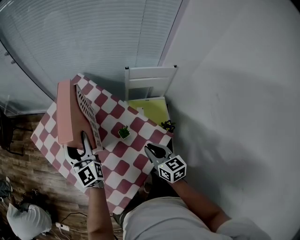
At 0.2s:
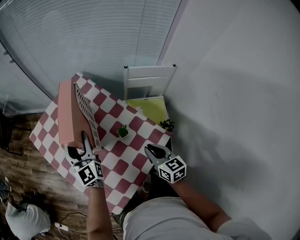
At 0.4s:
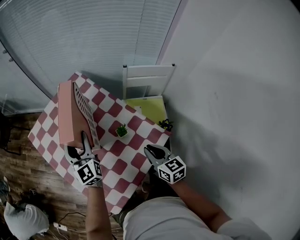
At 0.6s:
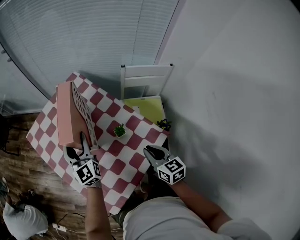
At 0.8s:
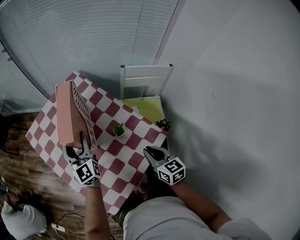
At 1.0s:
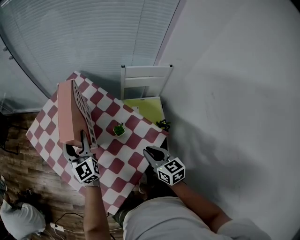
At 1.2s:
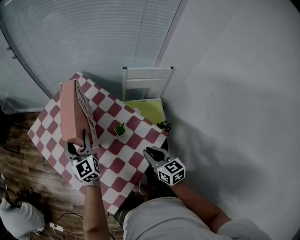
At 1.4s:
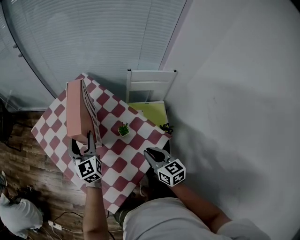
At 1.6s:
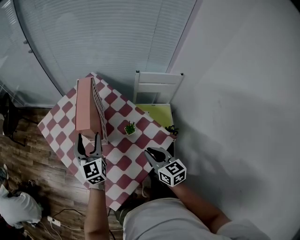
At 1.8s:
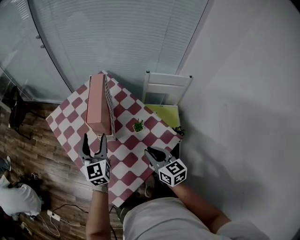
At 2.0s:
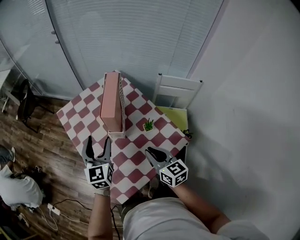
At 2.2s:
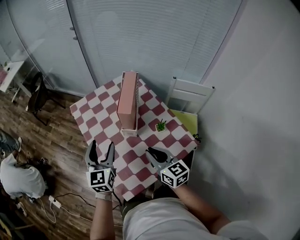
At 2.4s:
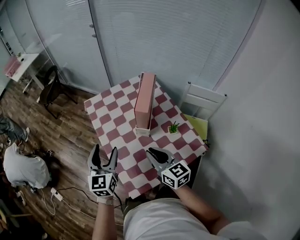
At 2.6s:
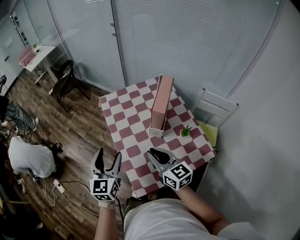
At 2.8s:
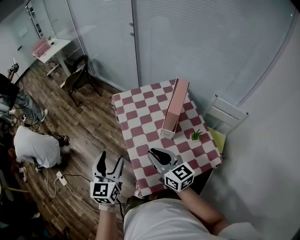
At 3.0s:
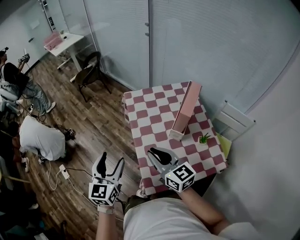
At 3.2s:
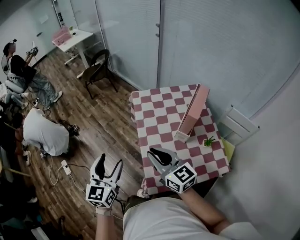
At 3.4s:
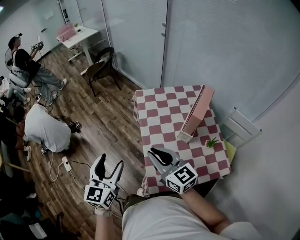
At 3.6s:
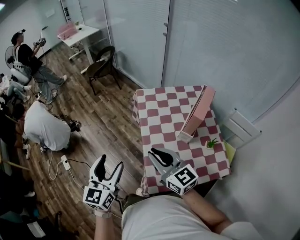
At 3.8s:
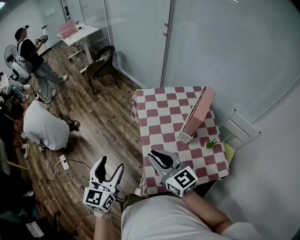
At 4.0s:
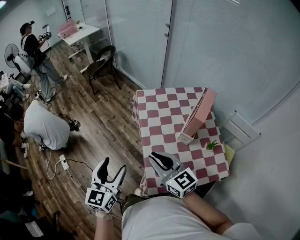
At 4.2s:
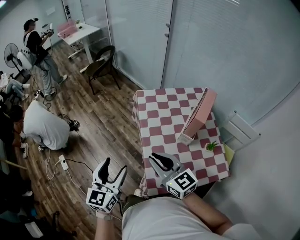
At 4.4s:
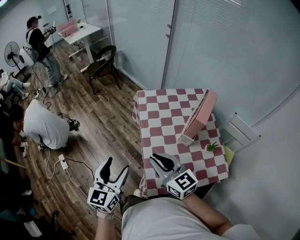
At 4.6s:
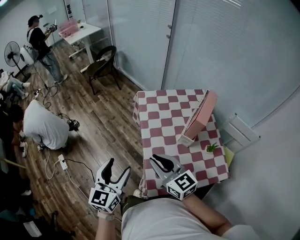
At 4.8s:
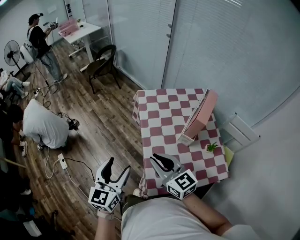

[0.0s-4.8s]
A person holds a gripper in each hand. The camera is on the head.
0.0s to 1.6s: The left gripper changes place by some 5 cm. Meanwhile the right gripper moves some 5 cm.
1.6s to 3.2s: The left gripper ends up about 40 cm from where it was; the right gripper ends up some 40 cm from where it was, and turns by about 50 degrees.
3.2s to 4.8s: The grippers stay close to where they were, moving slightly.

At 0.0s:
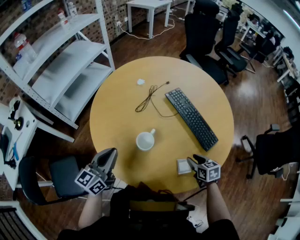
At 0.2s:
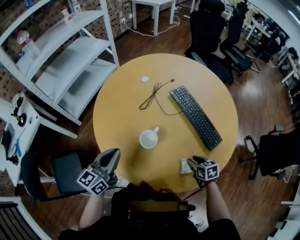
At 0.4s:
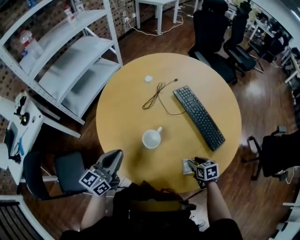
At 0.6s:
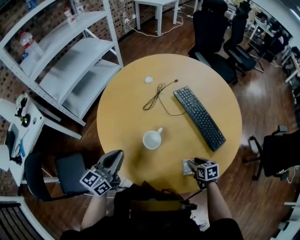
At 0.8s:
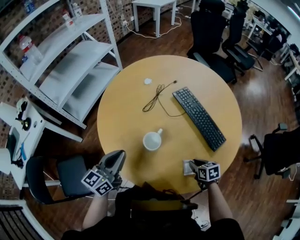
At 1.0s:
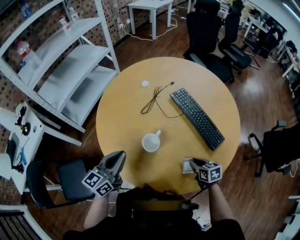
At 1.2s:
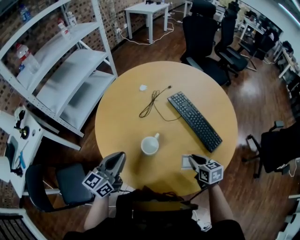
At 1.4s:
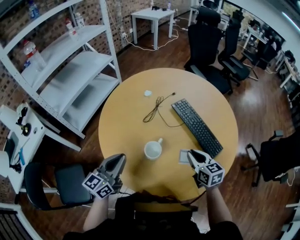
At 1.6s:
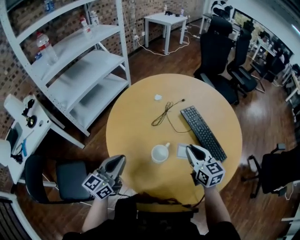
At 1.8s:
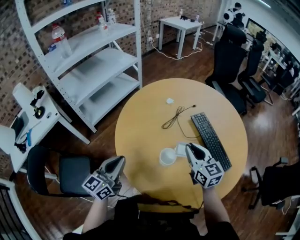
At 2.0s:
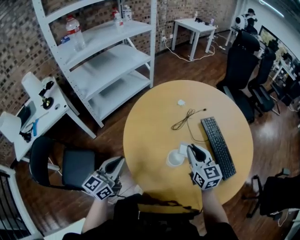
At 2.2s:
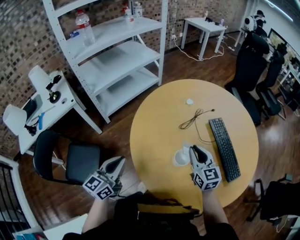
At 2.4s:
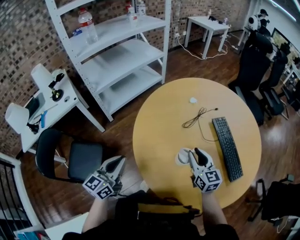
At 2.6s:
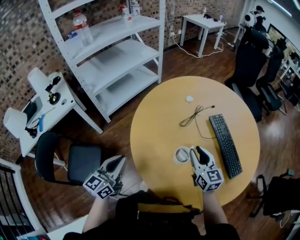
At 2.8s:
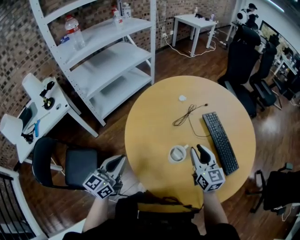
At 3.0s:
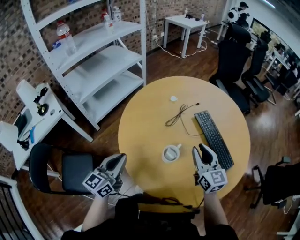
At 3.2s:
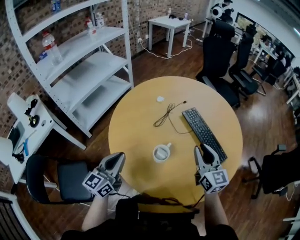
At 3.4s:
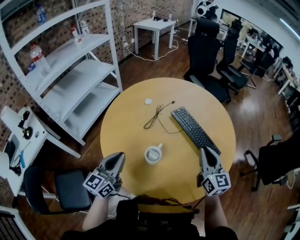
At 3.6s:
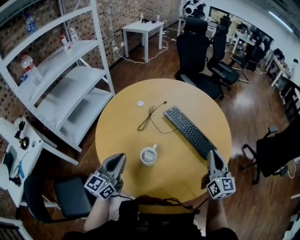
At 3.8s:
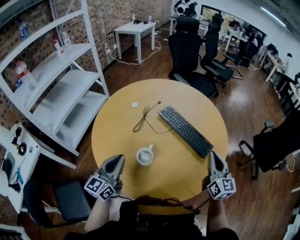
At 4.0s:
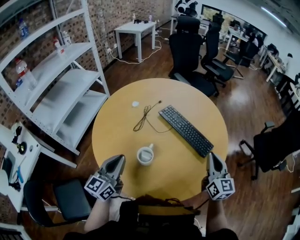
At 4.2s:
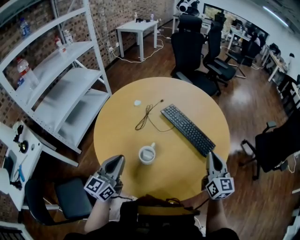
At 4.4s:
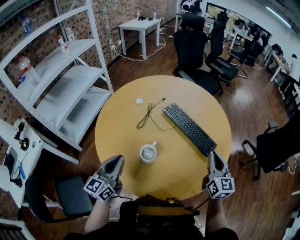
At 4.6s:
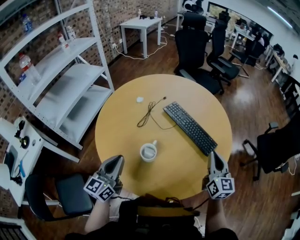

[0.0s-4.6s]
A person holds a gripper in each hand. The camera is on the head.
0.0s to 1.6s: The right gripper moves upward, to the left and forward, some 25 cm, turns by roughly 30 degrees, and closes up.
1.6s to 3.0s: The right gripper travels to the left and back again, roughly 10 cm each way.
3.0s to 4.6s: The right gripper travels to the right by approximately 20 cm, changes its angle by some 30 degrees, and closes its fingers. Meanwhile the left gripper travels to the right by some 10 cm.

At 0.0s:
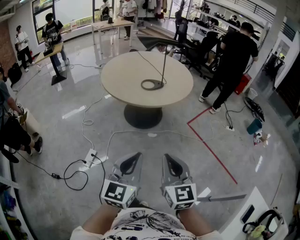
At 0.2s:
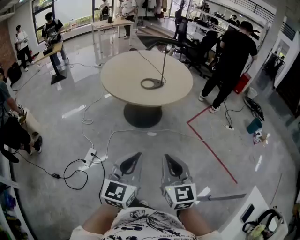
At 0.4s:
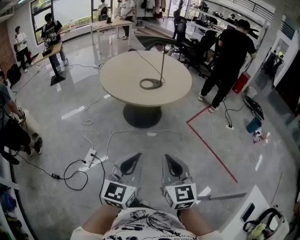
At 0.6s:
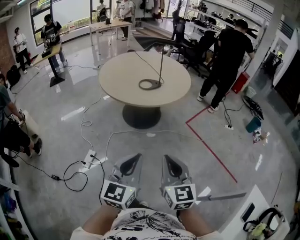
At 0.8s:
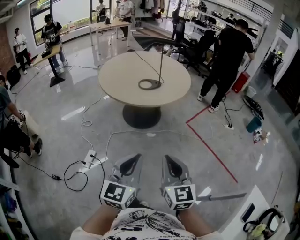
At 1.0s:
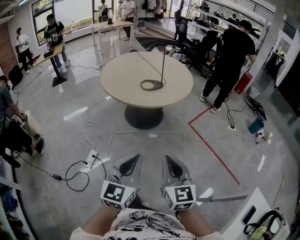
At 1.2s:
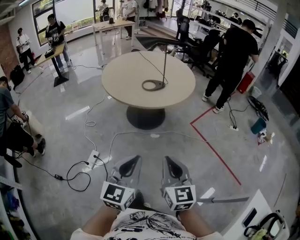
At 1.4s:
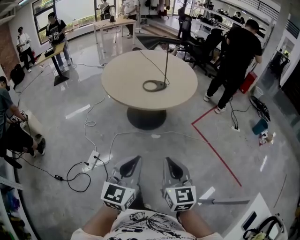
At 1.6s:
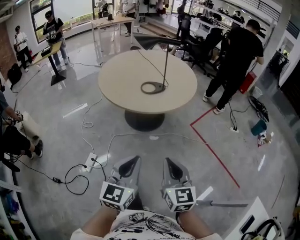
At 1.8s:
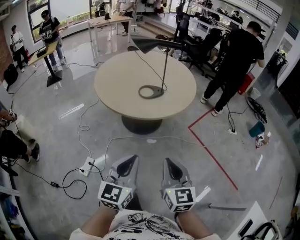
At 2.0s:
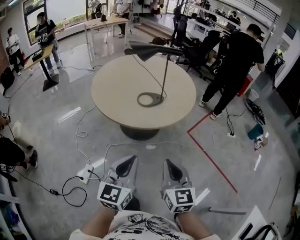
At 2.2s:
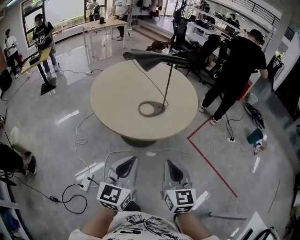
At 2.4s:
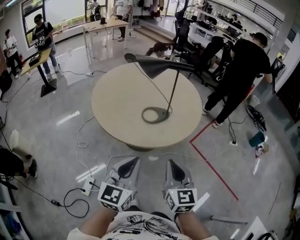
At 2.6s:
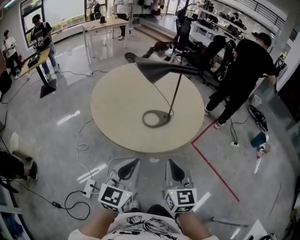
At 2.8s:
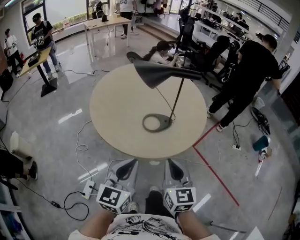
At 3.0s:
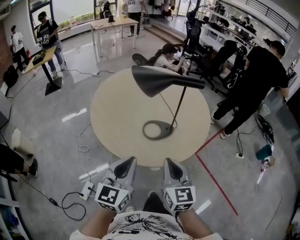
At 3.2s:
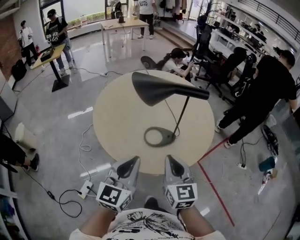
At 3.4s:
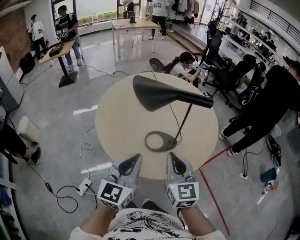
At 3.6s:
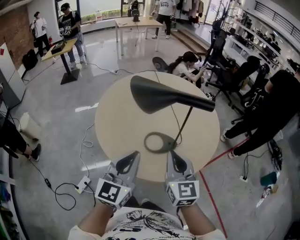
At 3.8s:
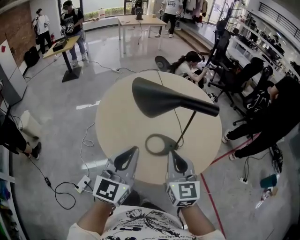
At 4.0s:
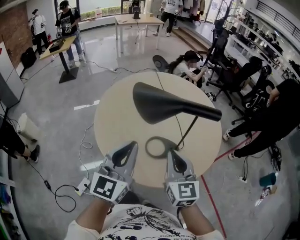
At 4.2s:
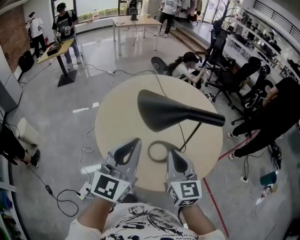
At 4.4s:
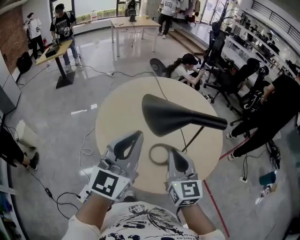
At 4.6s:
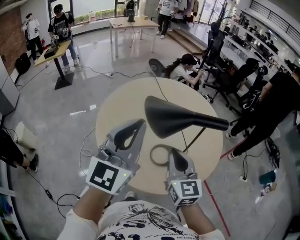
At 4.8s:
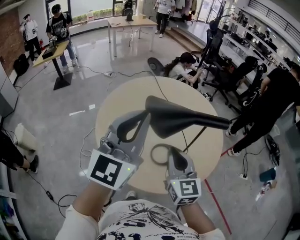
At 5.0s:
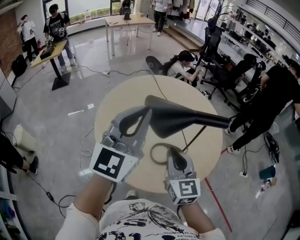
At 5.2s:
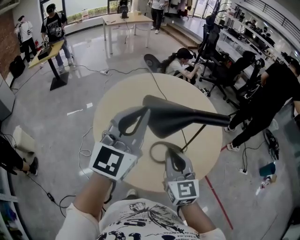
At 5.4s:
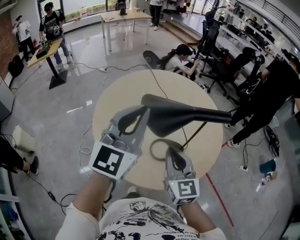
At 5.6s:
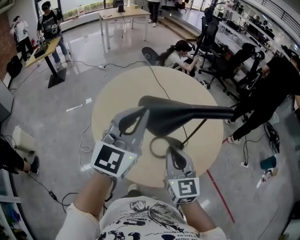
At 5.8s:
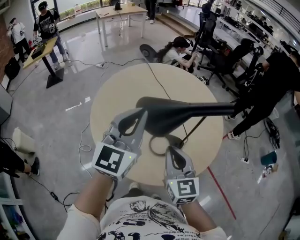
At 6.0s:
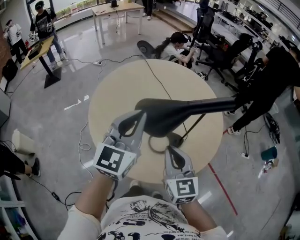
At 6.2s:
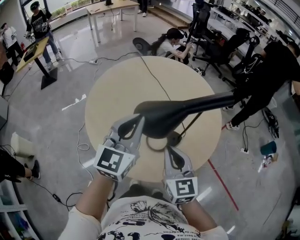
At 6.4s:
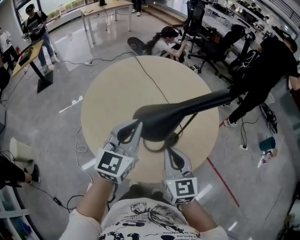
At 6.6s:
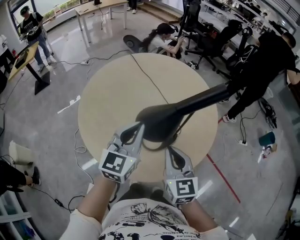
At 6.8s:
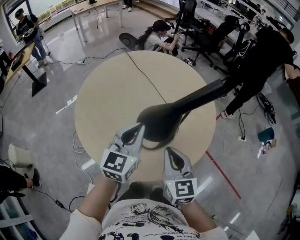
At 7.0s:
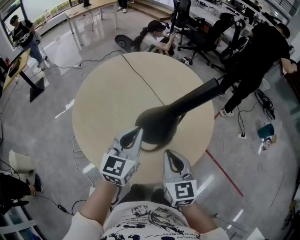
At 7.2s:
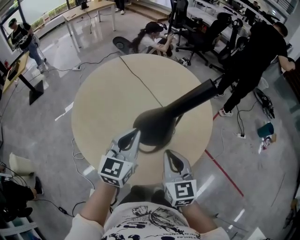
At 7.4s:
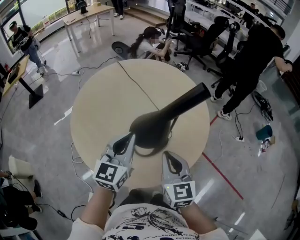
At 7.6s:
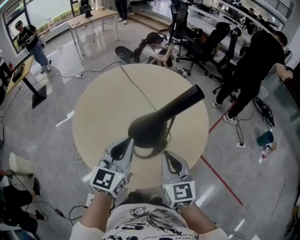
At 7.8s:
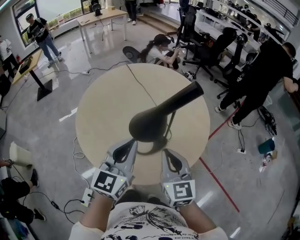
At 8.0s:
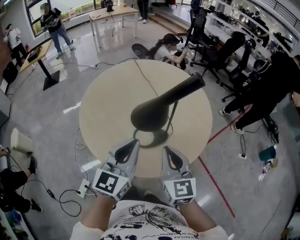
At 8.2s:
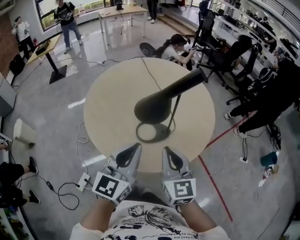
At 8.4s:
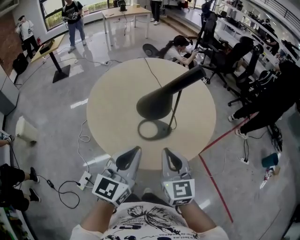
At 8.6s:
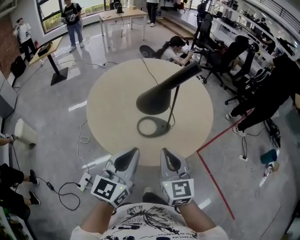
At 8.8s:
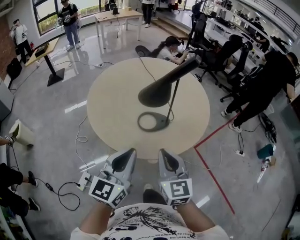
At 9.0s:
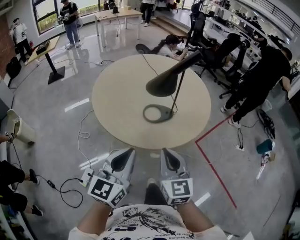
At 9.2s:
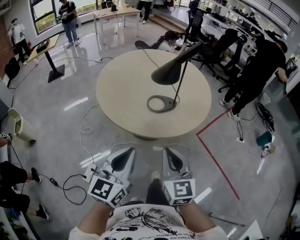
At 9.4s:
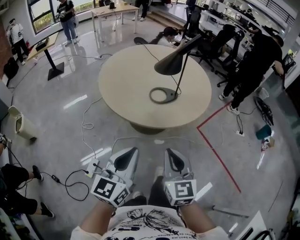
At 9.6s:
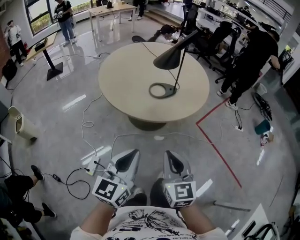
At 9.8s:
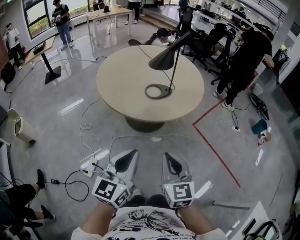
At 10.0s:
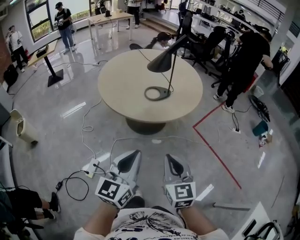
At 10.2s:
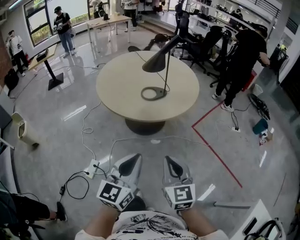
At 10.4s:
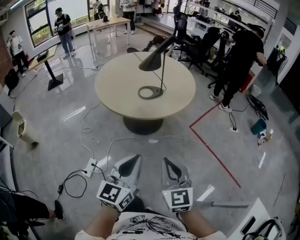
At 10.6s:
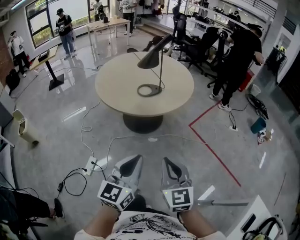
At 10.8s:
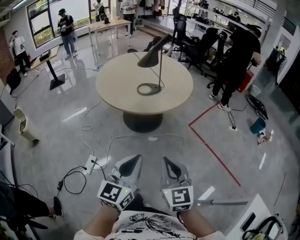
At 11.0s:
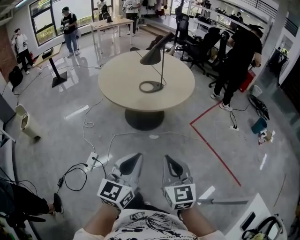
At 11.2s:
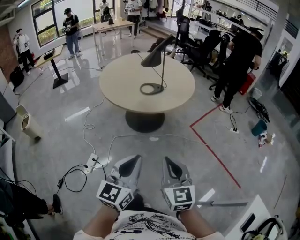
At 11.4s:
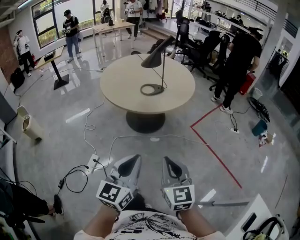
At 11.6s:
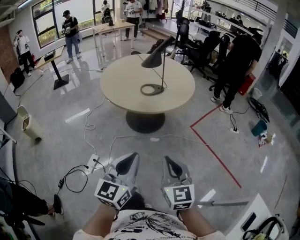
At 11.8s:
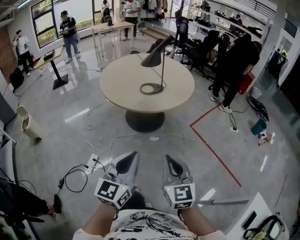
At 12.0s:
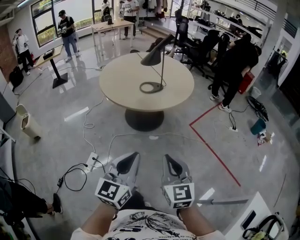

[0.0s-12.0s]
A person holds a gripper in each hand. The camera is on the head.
0.0s to 1.6s: The grippers both shift forward by some 5 cm.
1.6s to 3.0s: The grippers both shift forward by some 30 cm.
3.0s to 4.4s: The right gripper shifts about 15 cm forward. Meanwhile the left gripper heads forward and upward, covering roughly 20 cm.
4.4s to 6.0s: The left gripper goes about 5 cm forward, and reaches some 5 cm upward, then returns.
6.0s to 7.6s: The left gripper goes roughly 10 cm downward and to the right; the right gripper shifts about 10 cm to the right.
7.6s to 9.0s: The two grippers go about 25 cm backward.
9.0s to 10.4s: The grippers both shift backward by roughly 25 cm.
10.4s to 12.0s: Both grippers move backward, roughly 5 cm.

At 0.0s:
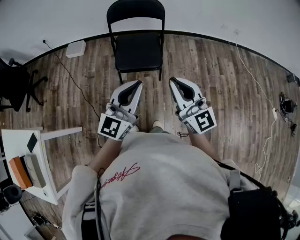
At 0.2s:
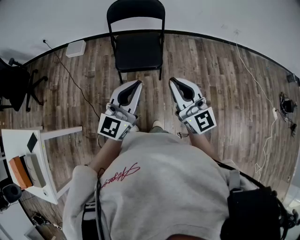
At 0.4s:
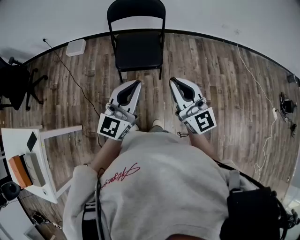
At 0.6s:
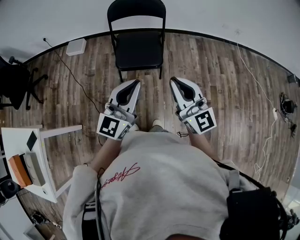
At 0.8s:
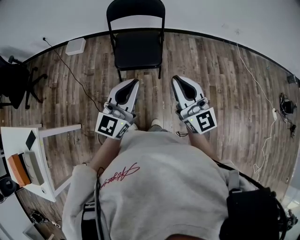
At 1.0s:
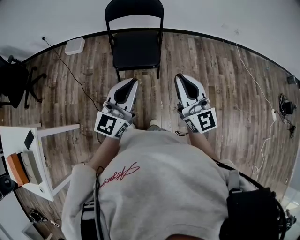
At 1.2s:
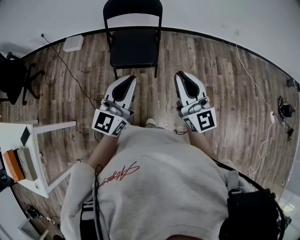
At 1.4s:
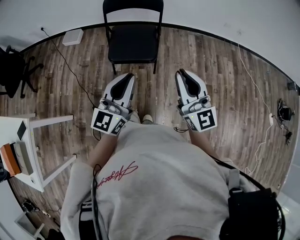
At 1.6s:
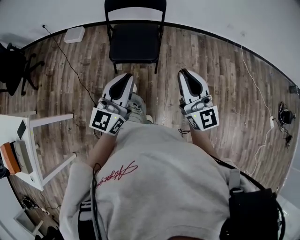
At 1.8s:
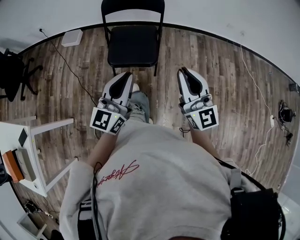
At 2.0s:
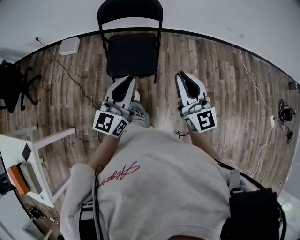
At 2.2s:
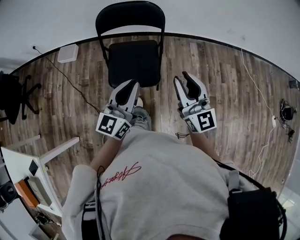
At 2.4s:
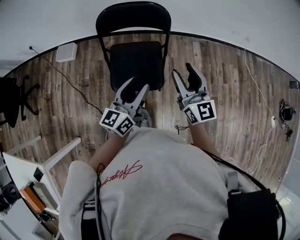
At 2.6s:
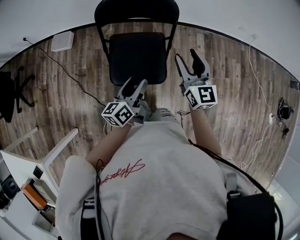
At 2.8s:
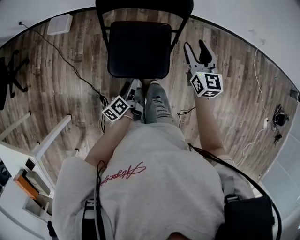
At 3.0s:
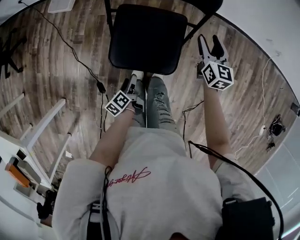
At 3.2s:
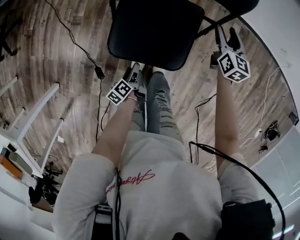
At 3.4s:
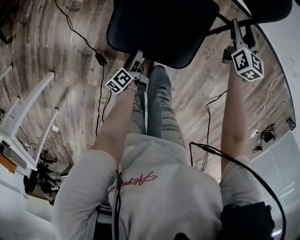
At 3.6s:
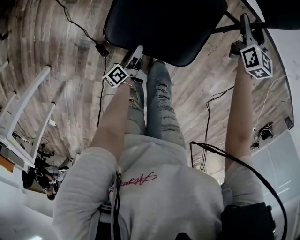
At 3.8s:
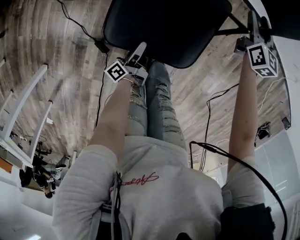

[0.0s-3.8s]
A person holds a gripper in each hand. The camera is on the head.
0.0s to 1.2s: The right gripper is displaced to the right by some 5 cm.
1.2s to 2.6s: The left gripper shifts roughly 35 cm forward and downward, rotates around the line of its fingers by some 40 degrees, counterclockwise from behind, and opens its fingers, while the right gripper shifts approximately 35 cm forward, rotates roughly 20 degrees, and opens its fingers.
2.6s to 3.8s: The left gripper shifts approximately 35 cm downward, and twists roughly 40 degrees counterclockwise, seen from behind; the right gripper shifts approximately 40 cm downward and forward.
